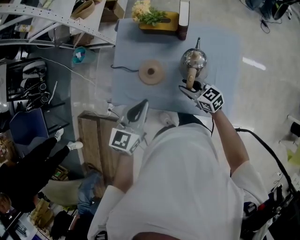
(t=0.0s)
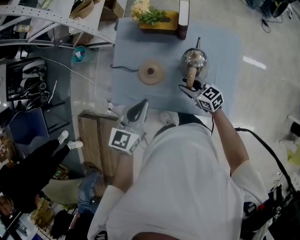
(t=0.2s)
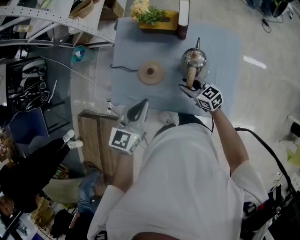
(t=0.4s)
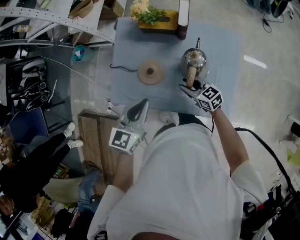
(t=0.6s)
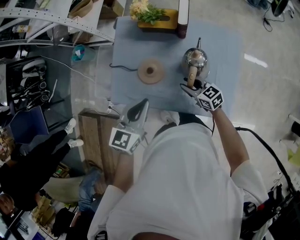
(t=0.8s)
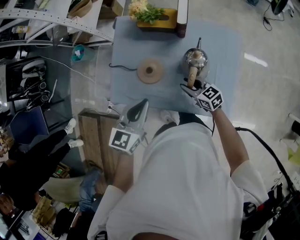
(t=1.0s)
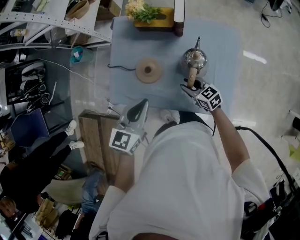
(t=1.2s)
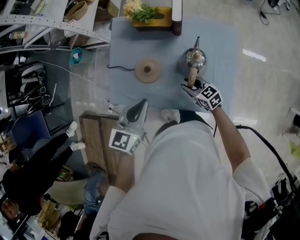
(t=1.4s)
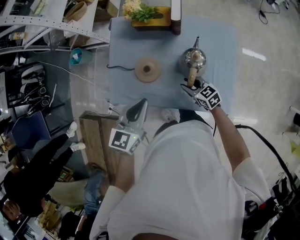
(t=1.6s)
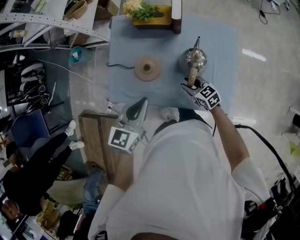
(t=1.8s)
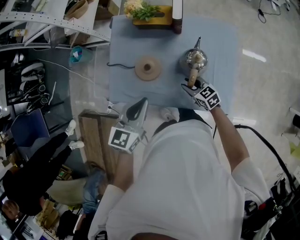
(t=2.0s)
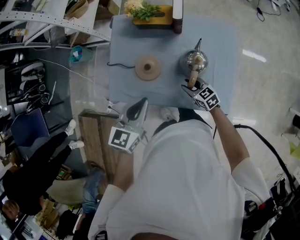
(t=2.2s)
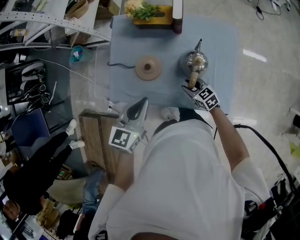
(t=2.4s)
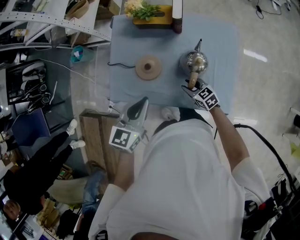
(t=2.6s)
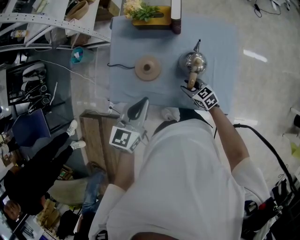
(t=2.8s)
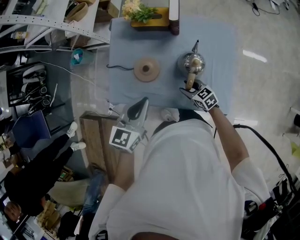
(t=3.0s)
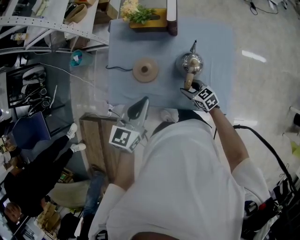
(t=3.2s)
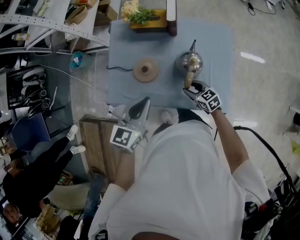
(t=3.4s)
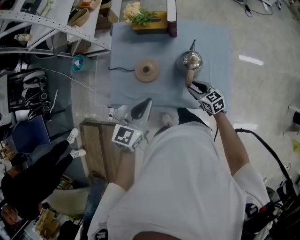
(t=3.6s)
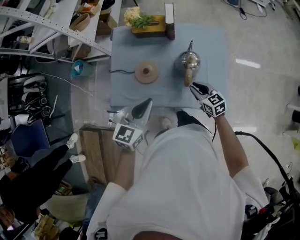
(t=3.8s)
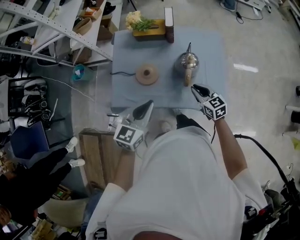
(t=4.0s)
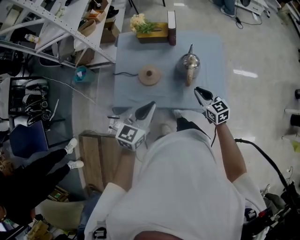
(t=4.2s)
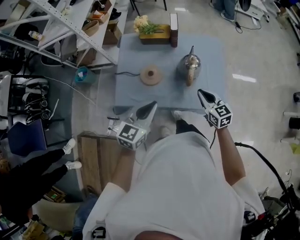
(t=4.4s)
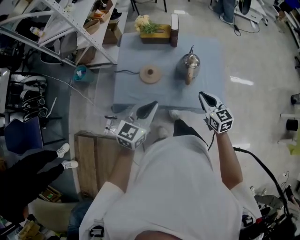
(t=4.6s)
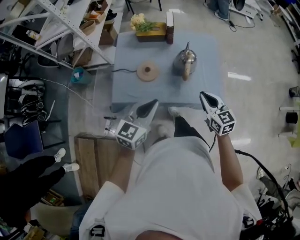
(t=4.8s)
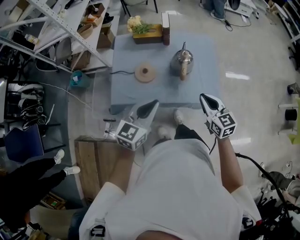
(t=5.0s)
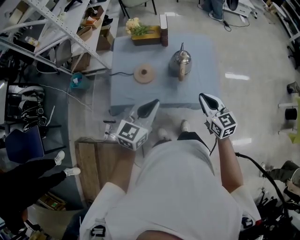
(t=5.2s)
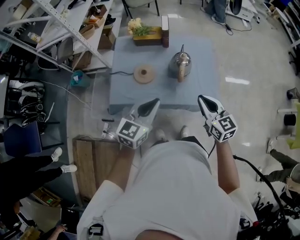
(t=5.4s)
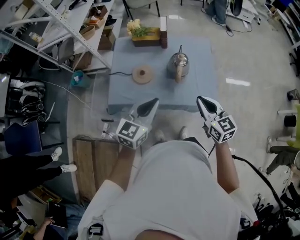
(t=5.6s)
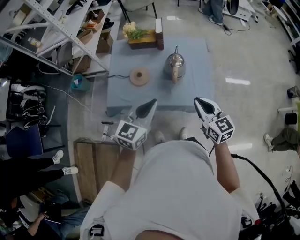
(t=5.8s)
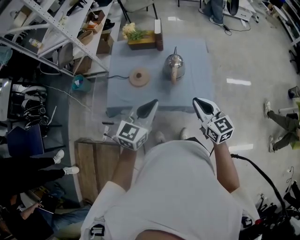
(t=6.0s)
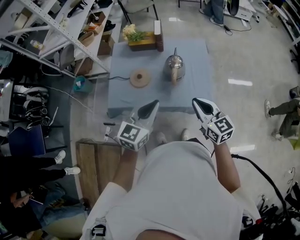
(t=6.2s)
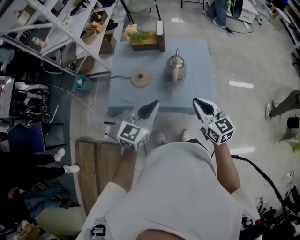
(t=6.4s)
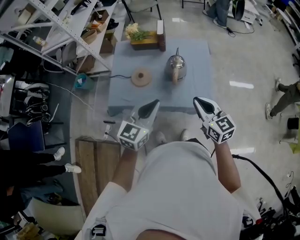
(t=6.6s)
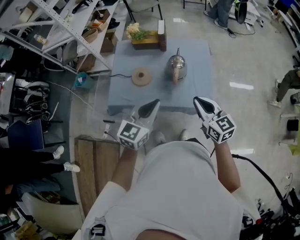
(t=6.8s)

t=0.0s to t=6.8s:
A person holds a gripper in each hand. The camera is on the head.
t=0.0s to t=1.4s: The right gripper is displaced downward by some 5 cm.
t=1.4s to t=2.8s: There are only small adjustments of the grippers.
t=2.8s to t=4.0s: The right gripper heads upward and backward, covering some 15 cm, changes its angle by about 20 degrees, and closes up, while the left gripper goes about 10 cm backward.
t=4.0s to t=5.4s: The right gripper heads upward and backward, covering approximately 20 cm. The left gripper is displaced backward and upward by about 10 cm.
t=5.4s to t=6.8s: The left gripper shifts approximately 5 cm to the right.

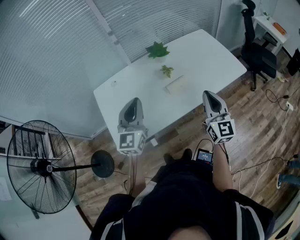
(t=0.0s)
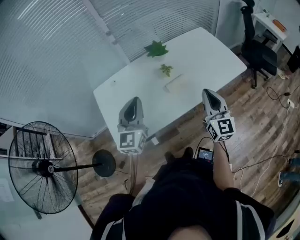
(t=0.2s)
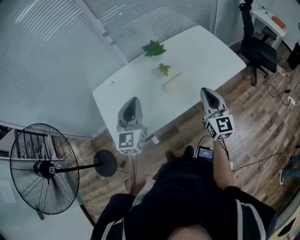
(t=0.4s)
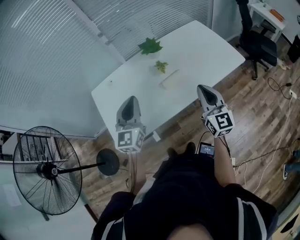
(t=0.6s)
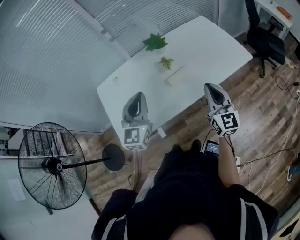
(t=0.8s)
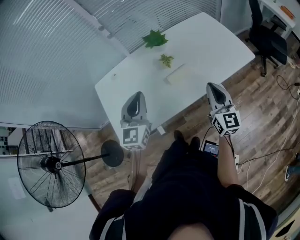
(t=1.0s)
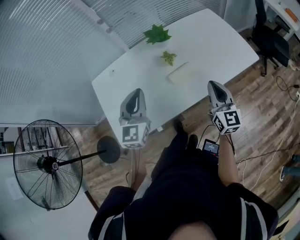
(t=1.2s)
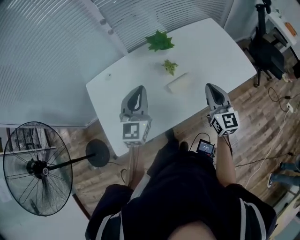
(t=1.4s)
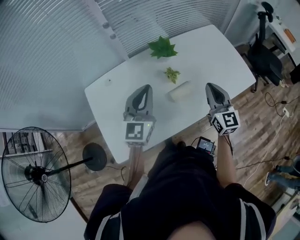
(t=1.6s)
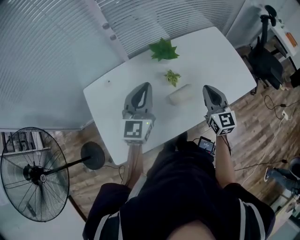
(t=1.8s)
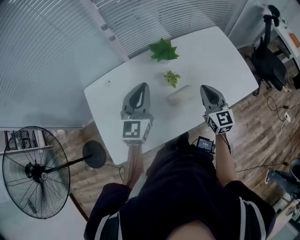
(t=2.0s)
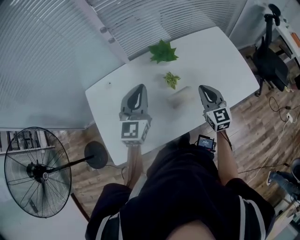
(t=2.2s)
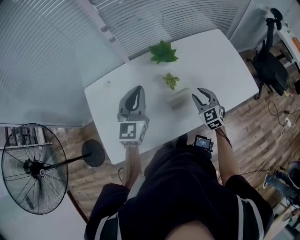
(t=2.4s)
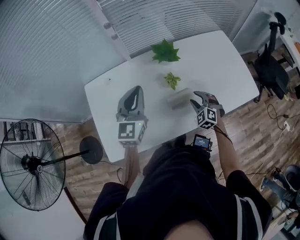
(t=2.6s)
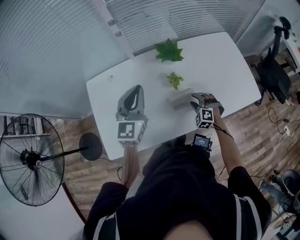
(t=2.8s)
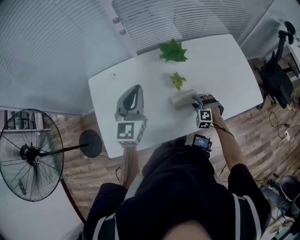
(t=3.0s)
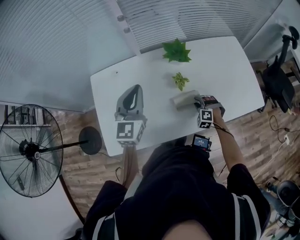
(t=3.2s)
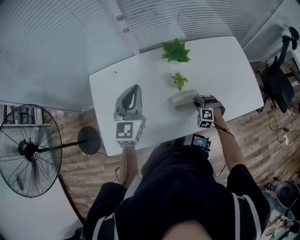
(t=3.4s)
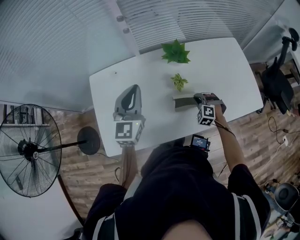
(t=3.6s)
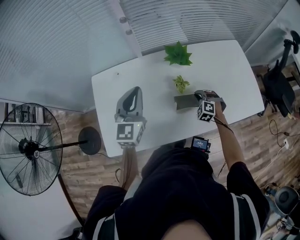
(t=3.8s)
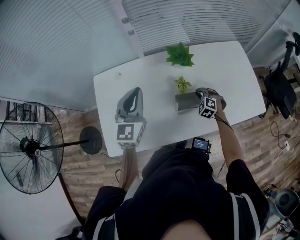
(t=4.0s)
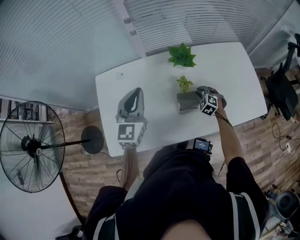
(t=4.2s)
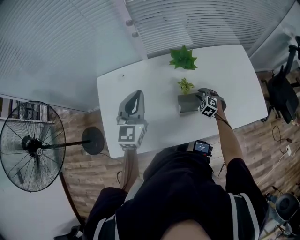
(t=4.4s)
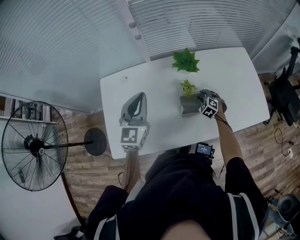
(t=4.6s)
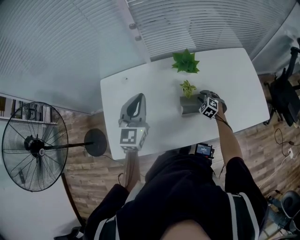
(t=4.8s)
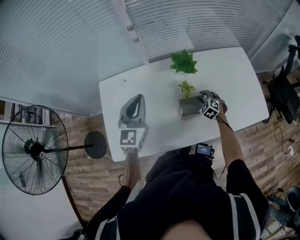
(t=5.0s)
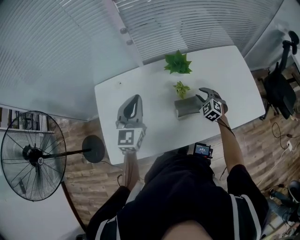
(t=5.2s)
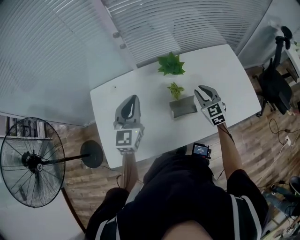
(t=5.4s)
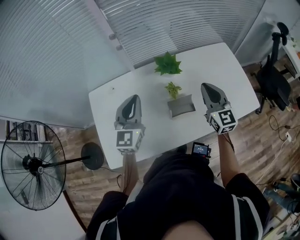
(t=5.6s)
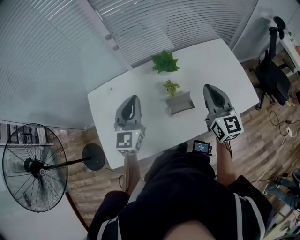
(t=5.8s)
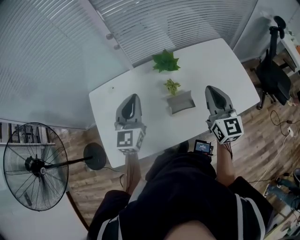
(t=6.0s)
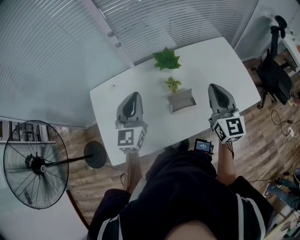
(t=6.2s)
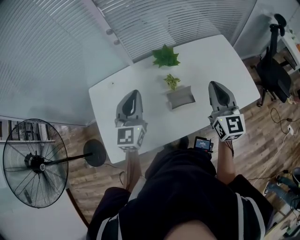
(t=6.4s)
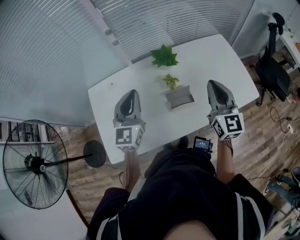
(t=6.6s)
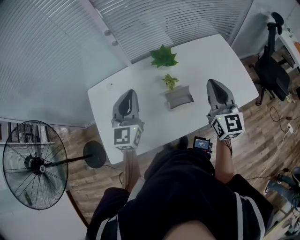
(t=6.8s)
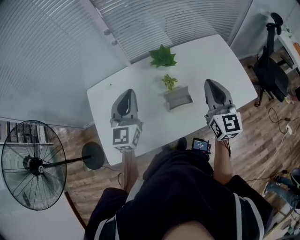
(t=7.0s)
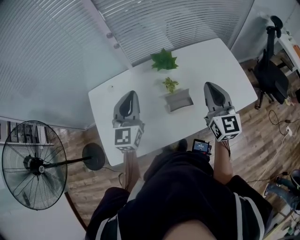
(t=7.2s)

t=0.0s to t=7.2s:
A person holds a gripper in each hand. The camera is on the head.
t=0.0s to t=1.4s: The right gripper is displaced forward and downward by about 15 cm, while the left gripper travels forward by some 10 cm.
t=1.4s to t=2.8s: The left gripper is displaced forward by approximately 10 cm. Meanwhile the right gripper travels downward and forward by roughly 25 cm, points its fingers about 50 degrees further downward, and opens its fingers.
t=2.8s to t=4.4s: The right gripper heads forward, covering approximately 10 cm.
t=4.4s to t=5.8s: The right gripper is displaced upward by roughly 35 cm, points its fingers roughly 50 degrees further upward, and closes its fingers.
t=5.8s to t=7.2s: There are only small adjustments of the grippers.

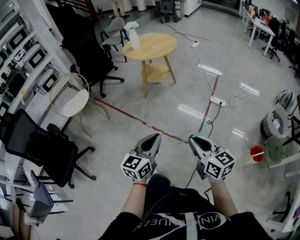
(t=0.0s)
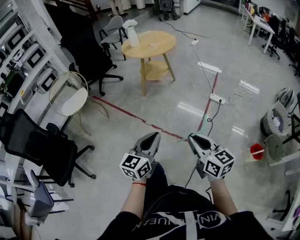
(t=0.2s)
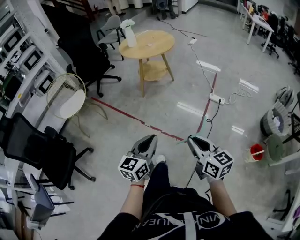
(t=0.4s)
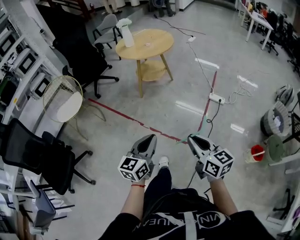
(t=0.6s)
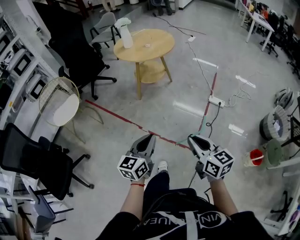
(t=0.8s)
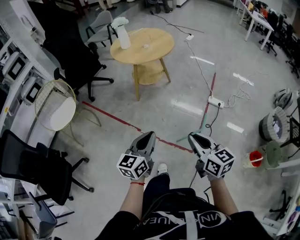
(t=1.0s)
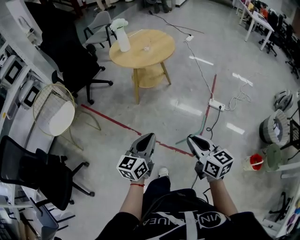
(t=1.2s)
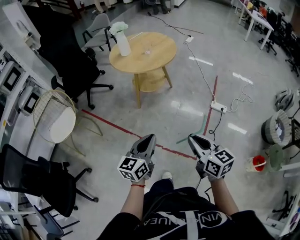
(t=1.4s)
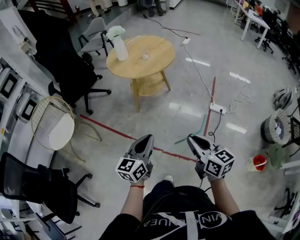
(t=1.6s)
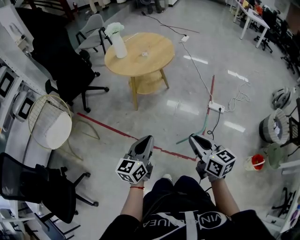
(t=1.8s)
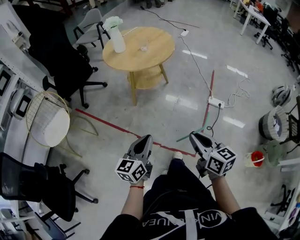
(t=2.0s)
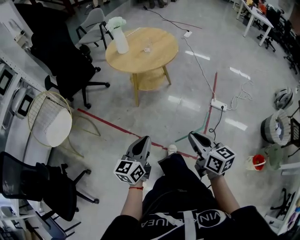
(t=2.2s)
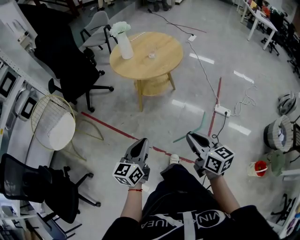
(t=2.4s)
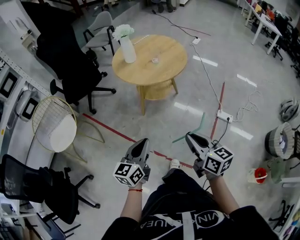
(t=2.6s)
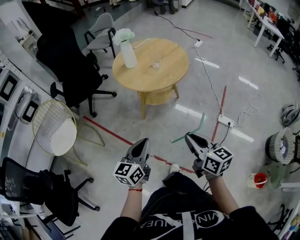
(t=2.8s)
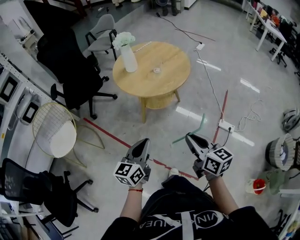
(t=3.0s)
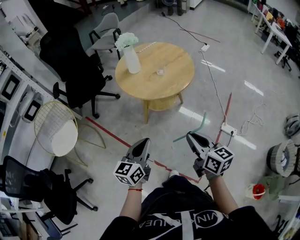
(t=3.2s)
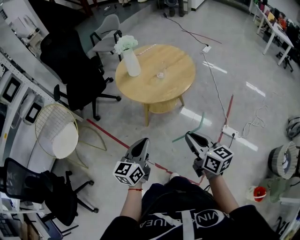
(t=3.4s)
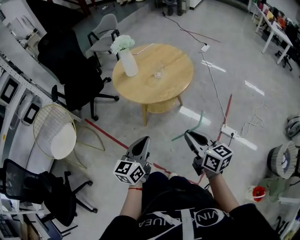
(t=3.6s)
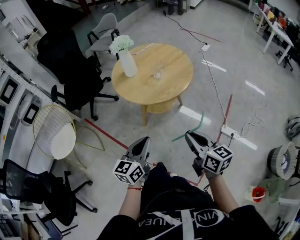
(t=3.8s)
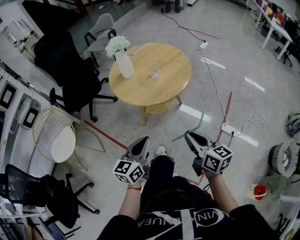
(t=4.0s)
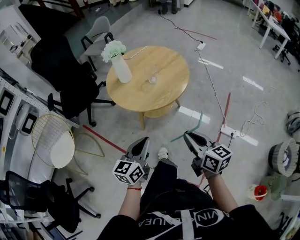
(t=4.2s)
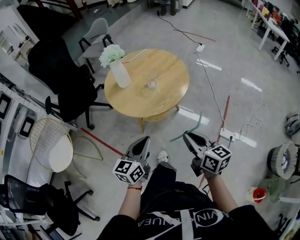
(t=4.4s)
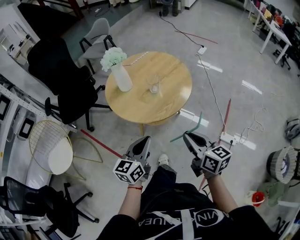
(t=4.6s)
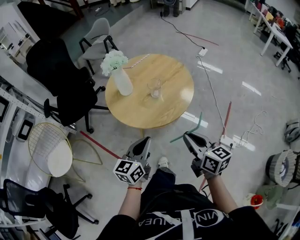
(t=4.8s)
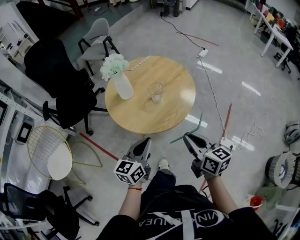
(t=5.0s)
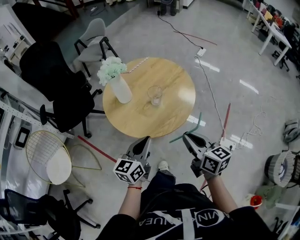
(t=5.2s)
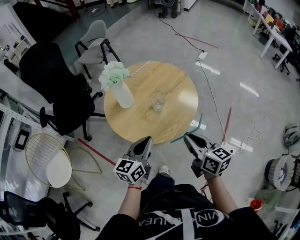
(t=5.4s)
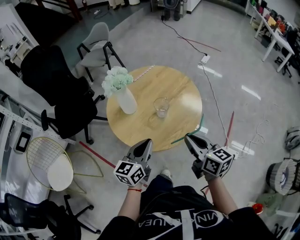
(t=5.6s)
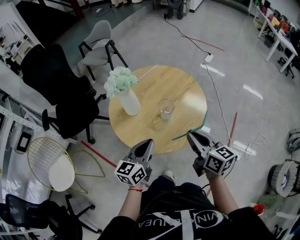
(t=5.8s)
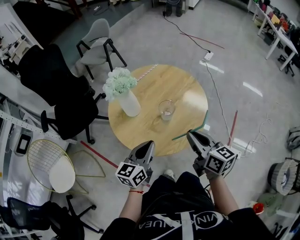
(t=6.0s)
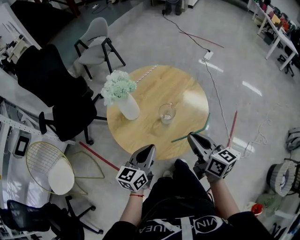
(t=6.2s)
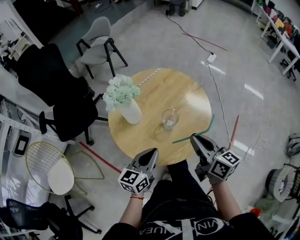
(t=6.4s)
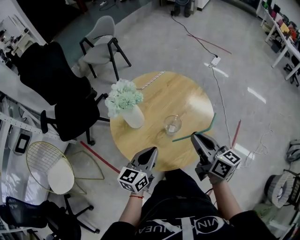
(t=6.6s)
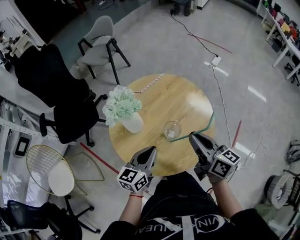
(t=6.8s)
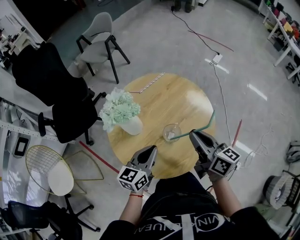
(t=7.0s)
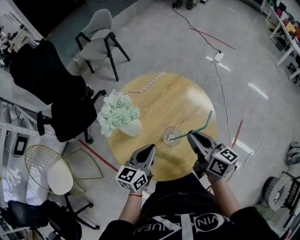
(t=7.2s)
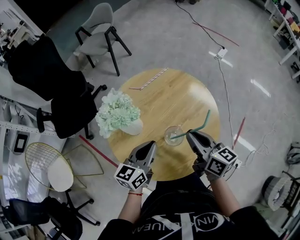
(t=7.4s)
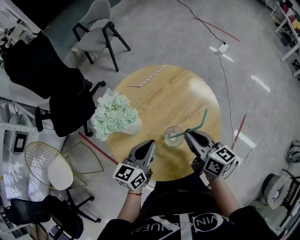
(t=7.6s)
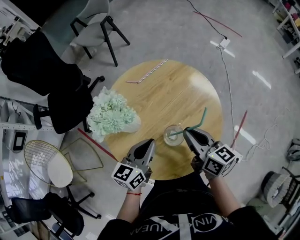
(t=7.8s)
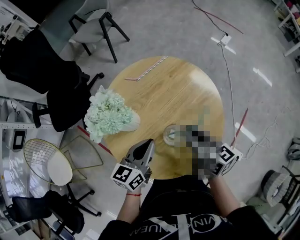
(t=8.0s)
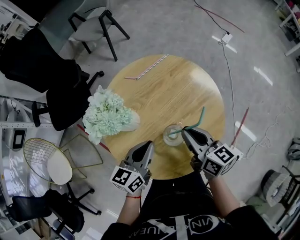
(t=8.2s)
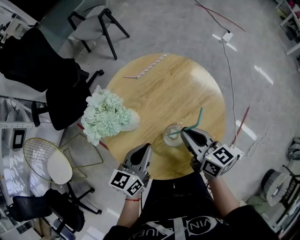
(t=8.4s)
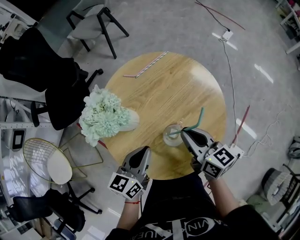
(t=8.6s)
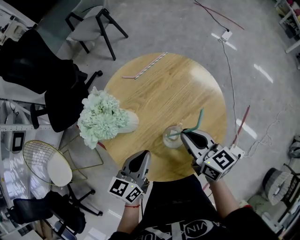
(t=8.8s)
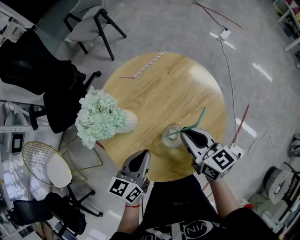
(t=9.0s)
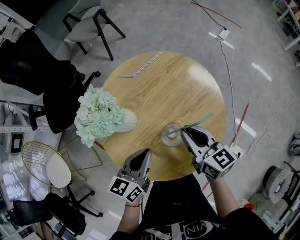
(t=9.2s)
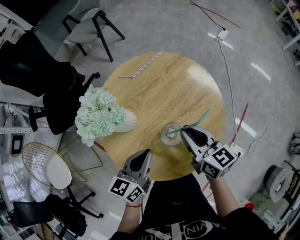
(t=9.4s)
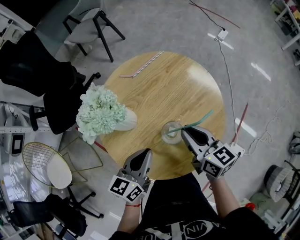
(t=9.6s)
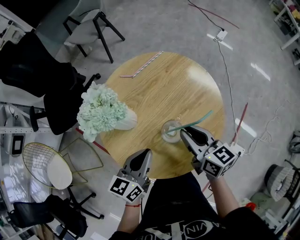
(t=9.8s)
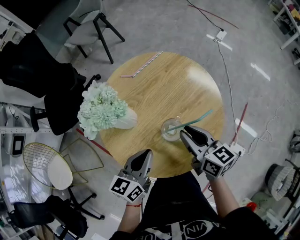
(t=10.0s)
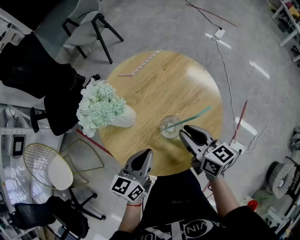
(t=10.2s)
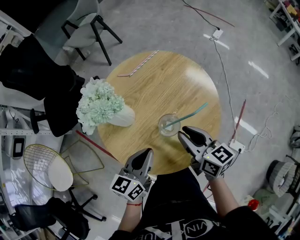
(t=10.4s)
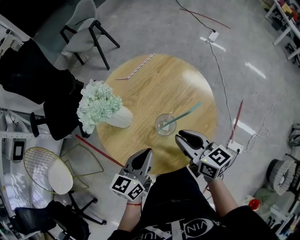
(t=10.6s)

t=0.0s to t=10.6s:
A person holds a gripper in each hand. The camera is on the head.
t=0.0s to t=1.6s: Both grippers move forward, some 30 cm.
t=1.6s to t=3.0s: The two grippers go approximately 15 cm forward.
t=3.0s to t=4.6s: Both grippers travel together forward, roughly 15 cm.
t=4.6s to t=6.0s: The grippers both shift forward by roughly 15 cm.
t=6.0s to t=7.6s: Both grippers travel together forward, some 15 cm.
t=7.6s to t=9.0s: The grippers make only small movements.
t=9.0s to t=10.6s: The right gripper shifts some 5 cm backward.
